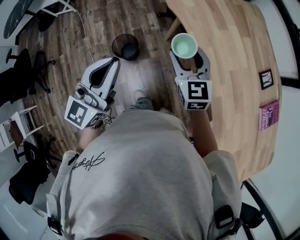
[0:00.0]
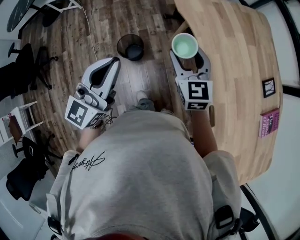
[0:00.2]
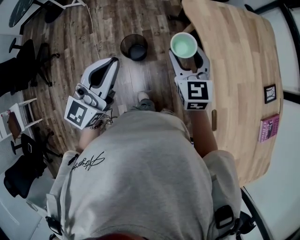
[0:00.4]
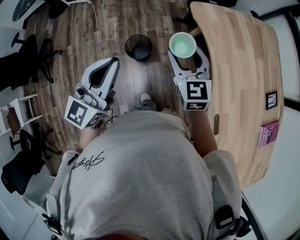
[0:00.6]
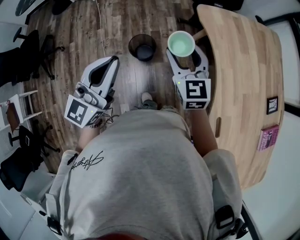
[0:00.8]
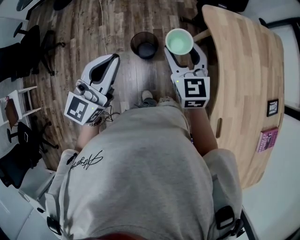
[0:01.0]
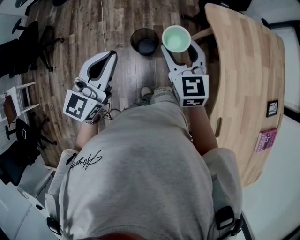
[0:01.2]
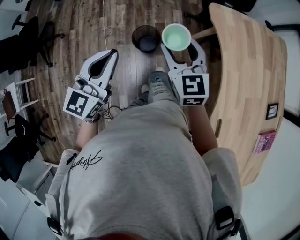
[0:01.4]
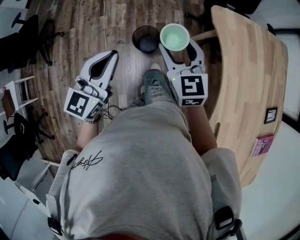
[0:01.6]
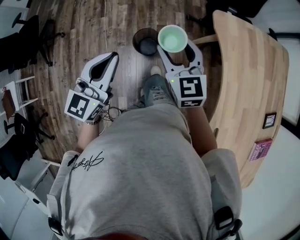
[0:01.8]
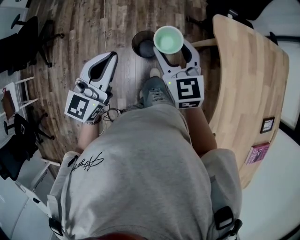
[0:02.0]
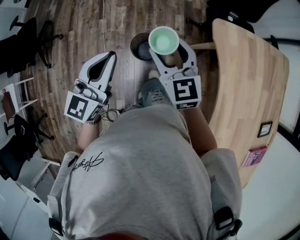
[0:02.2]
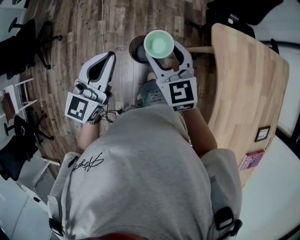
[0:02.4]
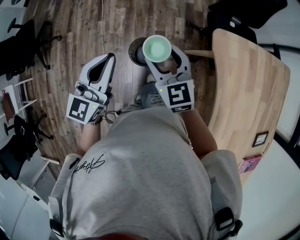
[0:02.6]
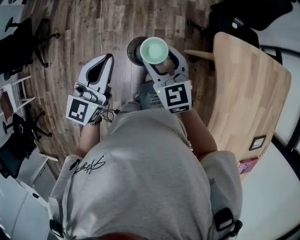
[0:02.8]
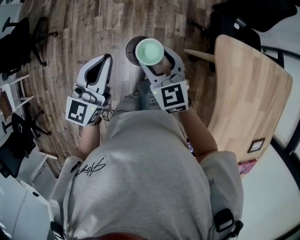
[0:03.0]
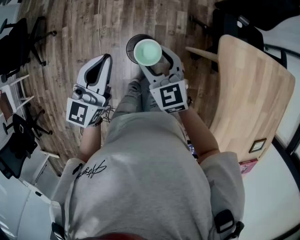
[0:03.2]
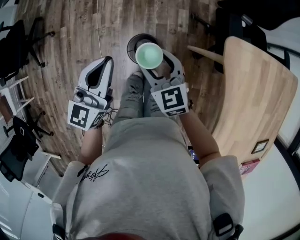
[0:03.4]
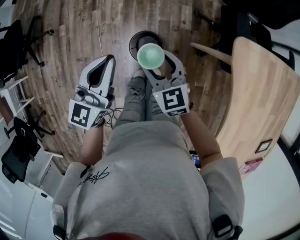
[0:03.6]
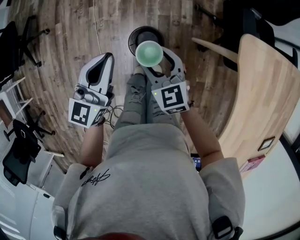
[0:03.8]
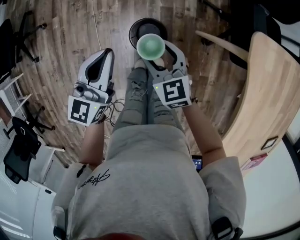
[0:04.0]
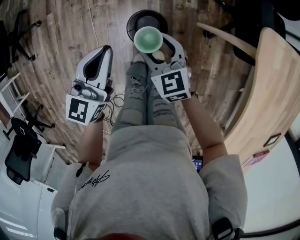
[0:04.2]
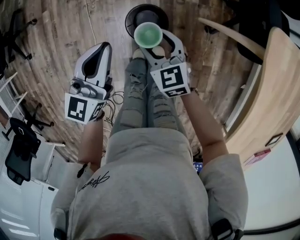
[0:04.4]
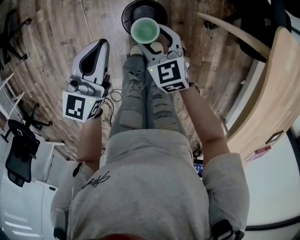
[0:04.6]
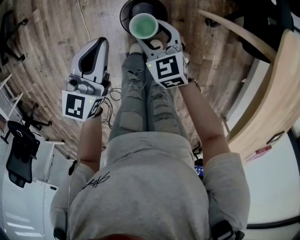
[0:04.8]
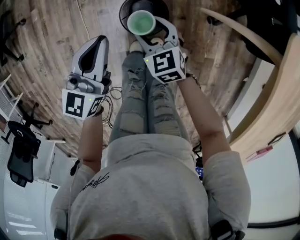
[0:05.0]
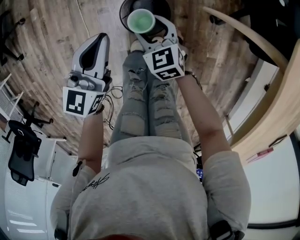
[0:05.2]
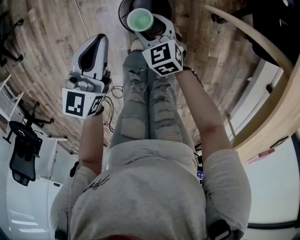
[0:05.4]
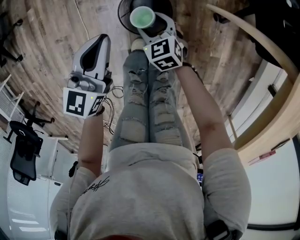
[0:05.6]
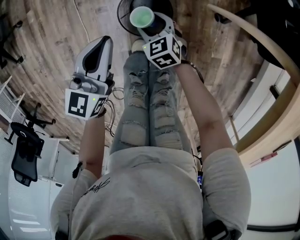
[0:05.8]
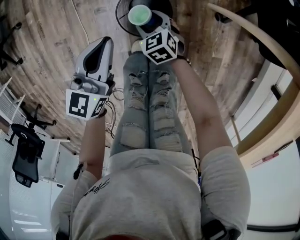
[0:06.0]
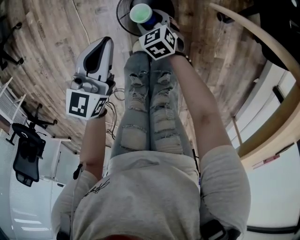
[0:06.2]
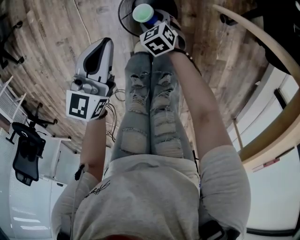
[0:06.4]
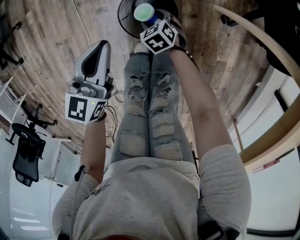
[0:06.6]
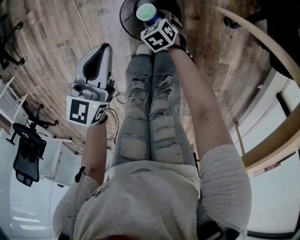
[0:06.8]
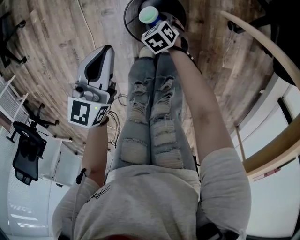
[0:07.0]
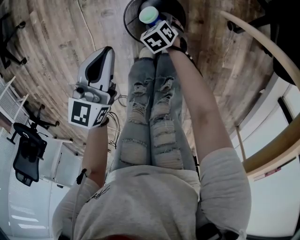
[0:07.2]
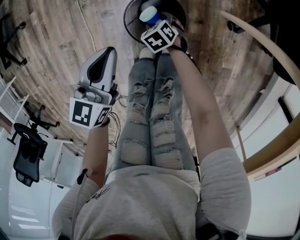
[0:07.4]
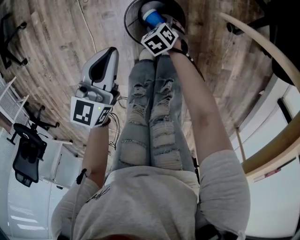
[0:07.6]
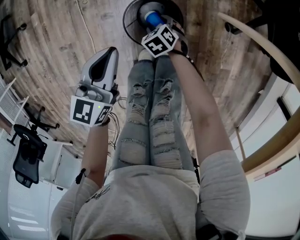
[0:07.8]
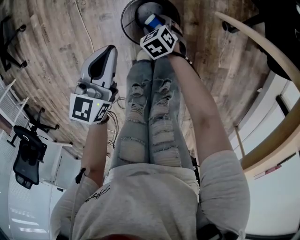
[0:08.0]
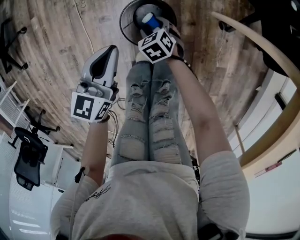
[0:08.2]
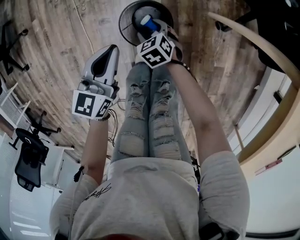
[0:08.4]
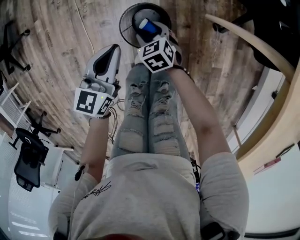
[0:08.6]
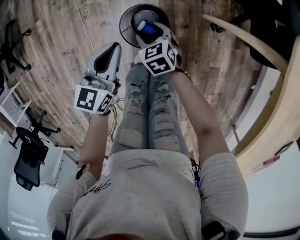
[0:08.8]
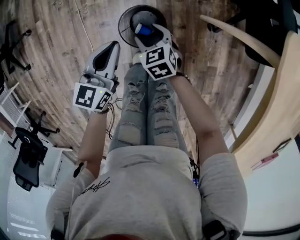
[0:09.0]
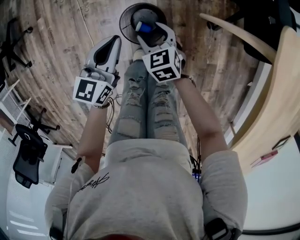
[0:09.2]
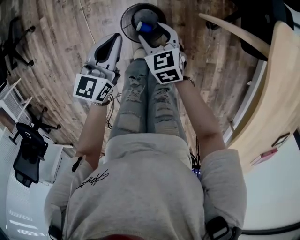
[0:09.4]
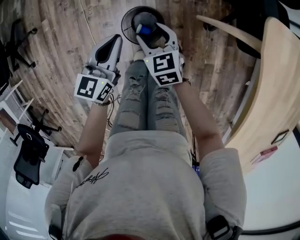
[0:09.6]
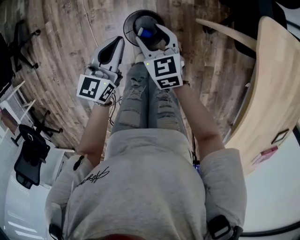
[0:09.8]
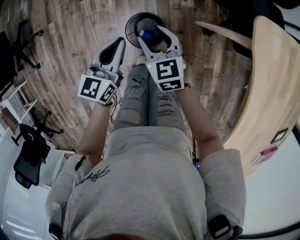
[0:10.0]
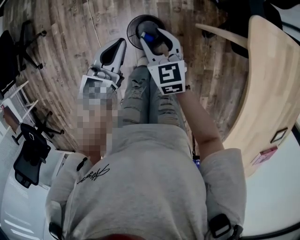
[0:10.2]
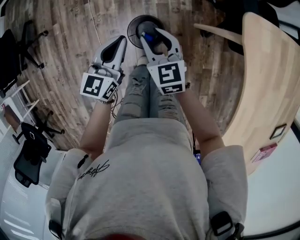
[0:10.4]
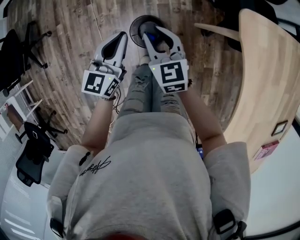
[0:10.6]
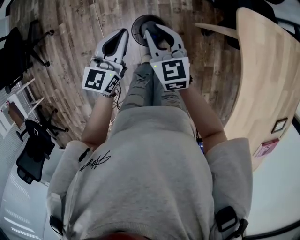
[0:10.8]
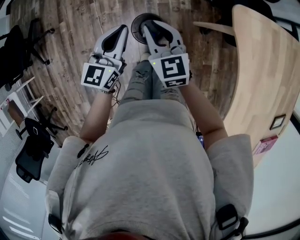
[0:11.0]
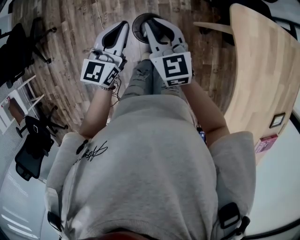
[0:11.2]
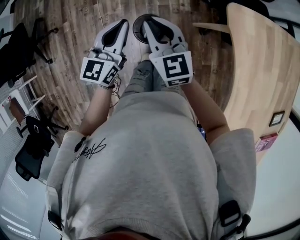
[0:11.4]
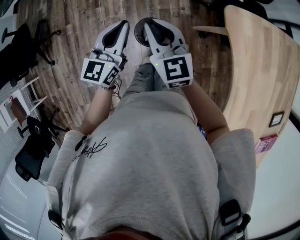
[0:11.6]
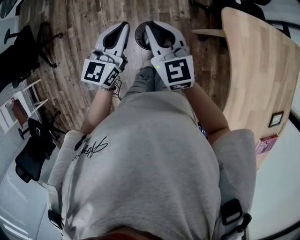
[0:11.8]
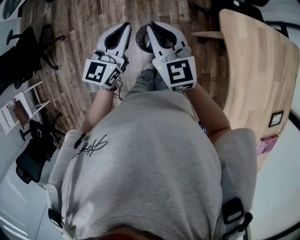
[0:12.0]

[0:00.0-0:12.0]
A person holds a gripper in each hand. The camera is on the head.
0:00.0 to 0:01.6: The left gripper goes some 15 cm to the left and downward, and changes its angle by roughly 20 degrees; the right gripper heads to the left, covering roughly 20 cm.
0:01.6 to 0:03.0: The left gripper moves forward, some 20 cm; the right gripper moves forward and downward, roughly 15 cm.
0:03.0 to 0:04.4: Both grippers move downward, some 20 cm.
0:04.4 to 0:06.0: The right gripper travels downward by about 25 cm; the left gripper moves downward, about 15 cm.
0:06.0 to 0:07.6: The right gripper is displaced downward by some 10 cm. The left gripper shifts by approximately 5 cm.
0:07.6 to 0:09.0: The left gripper moves upward, roughly 5 cm. The right gripper shifts about 20 cm upward, and changes its angle by about 20 degrees.
0:09.0 to 0:10.4: The right gripper travels upward by approximately 25 cm, rotates about 20 degrees, and closes up. The left gripper shifts approximately 15 cm upward.
0:10.4 to 0:12.0: Both grippers travel together upward, some 20 cm. The right gripper closes its fingers.

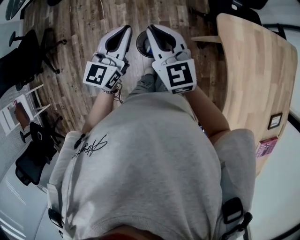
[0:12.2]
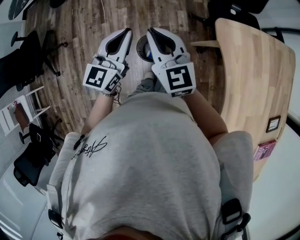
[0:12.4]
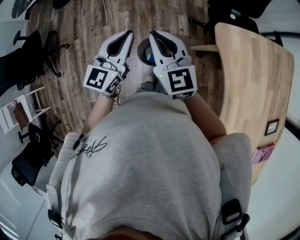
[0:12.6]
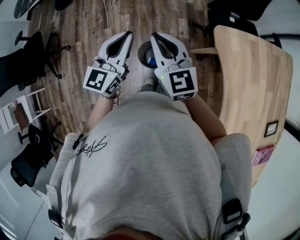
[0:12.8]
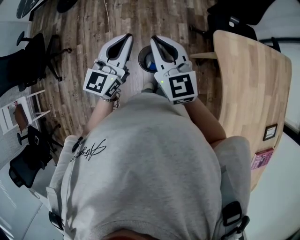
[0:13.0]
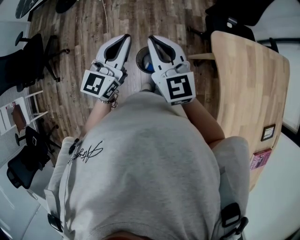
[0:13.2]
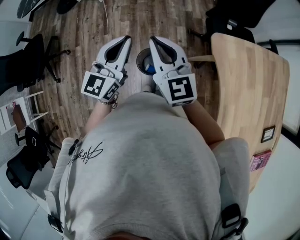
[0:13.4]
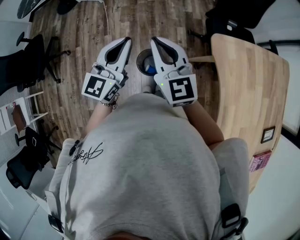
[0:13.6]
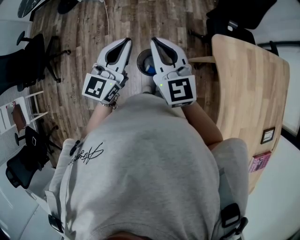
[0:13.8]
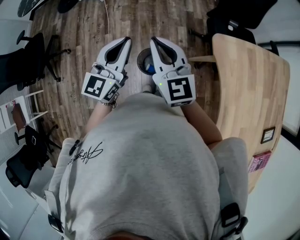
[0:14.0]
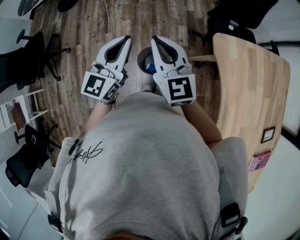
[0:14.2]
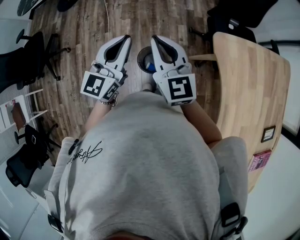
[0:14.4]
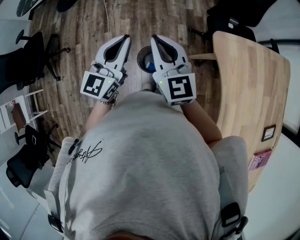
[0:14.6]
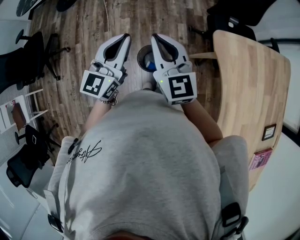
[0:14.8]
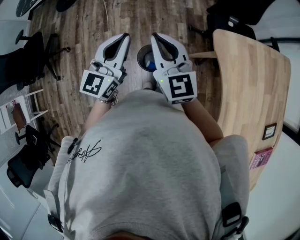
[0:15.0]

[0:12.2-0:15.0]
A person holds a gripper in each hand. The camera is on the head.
0:12.2 to 0:13.6: The two grippers go some 5 cm upward.
0:13.6 to 0:15.0: Both grippers stay put.

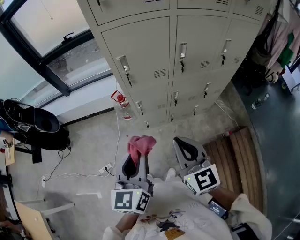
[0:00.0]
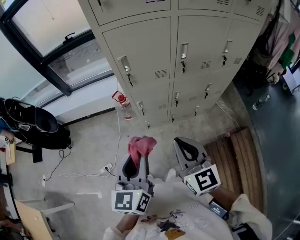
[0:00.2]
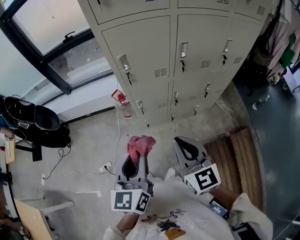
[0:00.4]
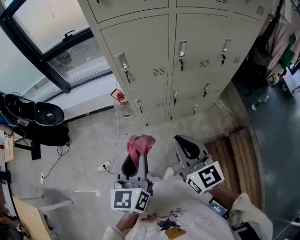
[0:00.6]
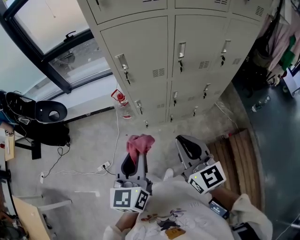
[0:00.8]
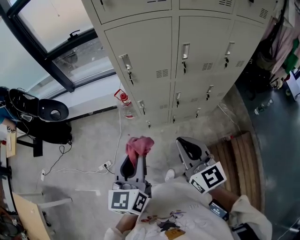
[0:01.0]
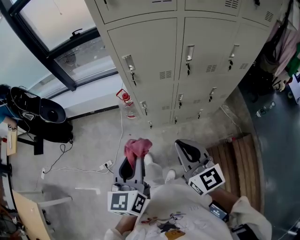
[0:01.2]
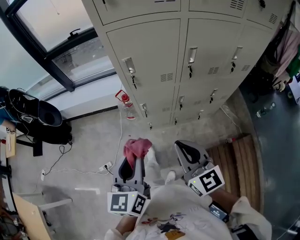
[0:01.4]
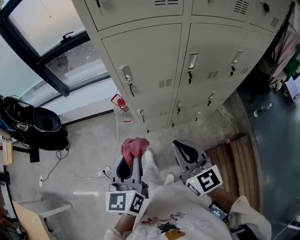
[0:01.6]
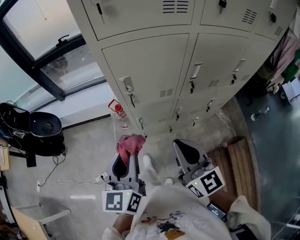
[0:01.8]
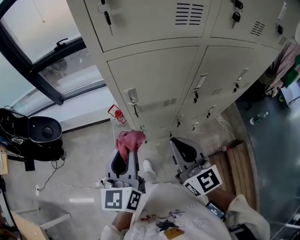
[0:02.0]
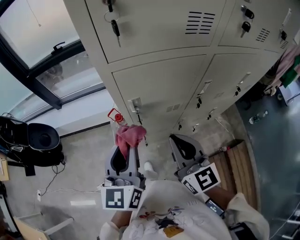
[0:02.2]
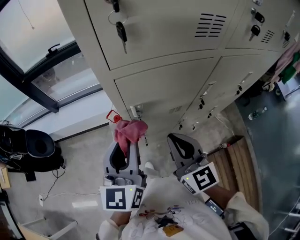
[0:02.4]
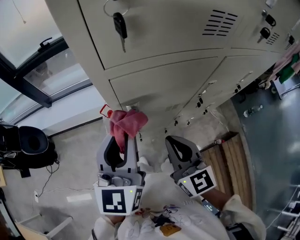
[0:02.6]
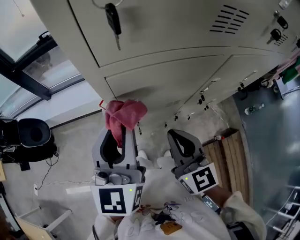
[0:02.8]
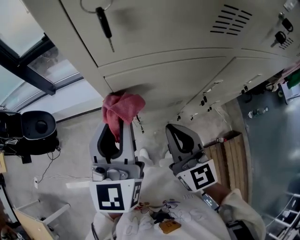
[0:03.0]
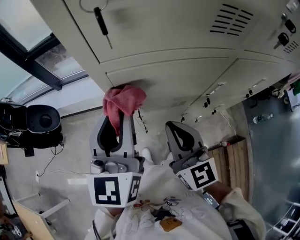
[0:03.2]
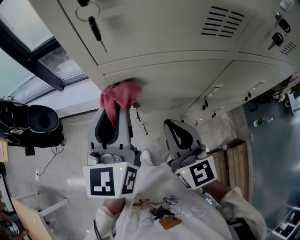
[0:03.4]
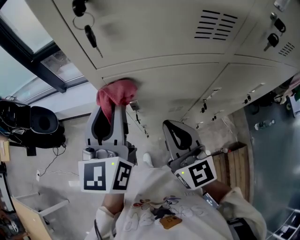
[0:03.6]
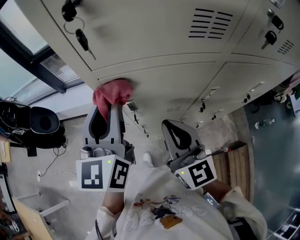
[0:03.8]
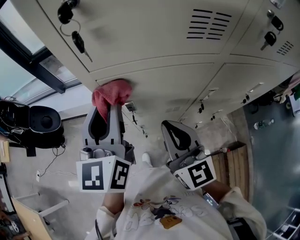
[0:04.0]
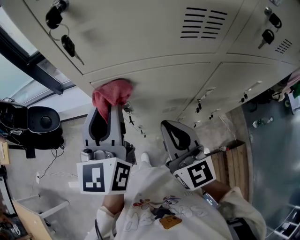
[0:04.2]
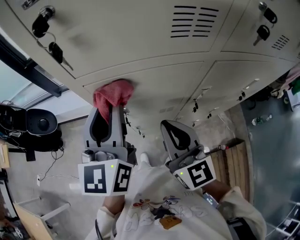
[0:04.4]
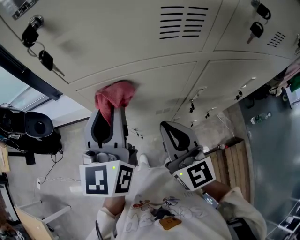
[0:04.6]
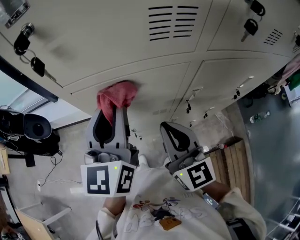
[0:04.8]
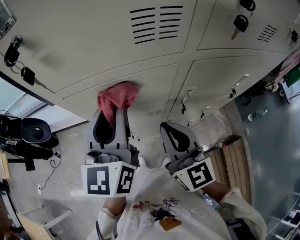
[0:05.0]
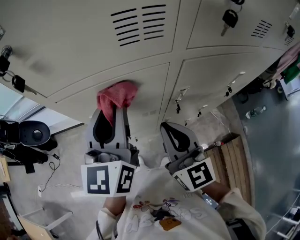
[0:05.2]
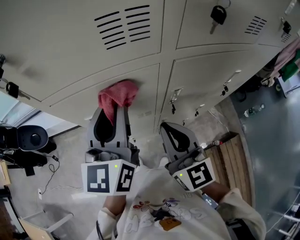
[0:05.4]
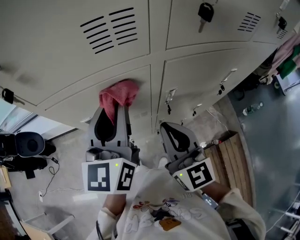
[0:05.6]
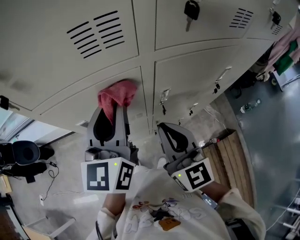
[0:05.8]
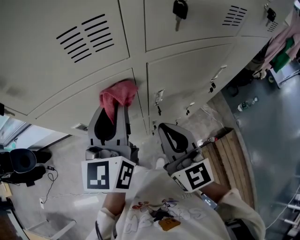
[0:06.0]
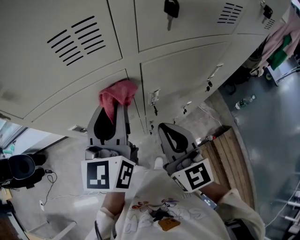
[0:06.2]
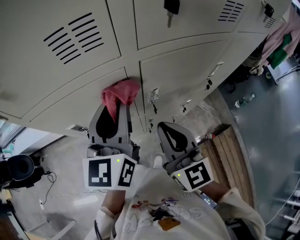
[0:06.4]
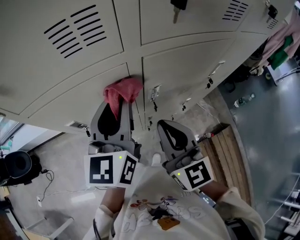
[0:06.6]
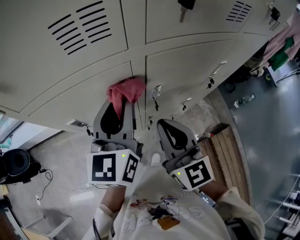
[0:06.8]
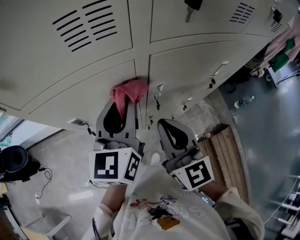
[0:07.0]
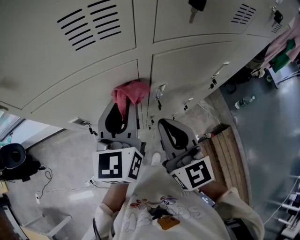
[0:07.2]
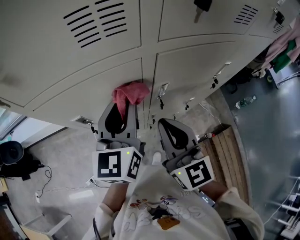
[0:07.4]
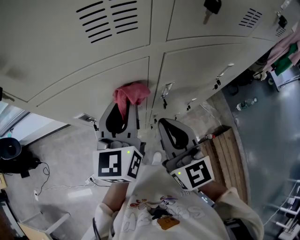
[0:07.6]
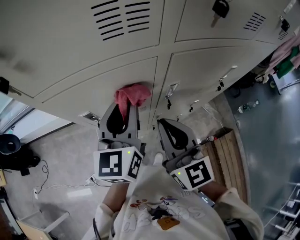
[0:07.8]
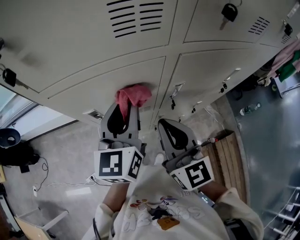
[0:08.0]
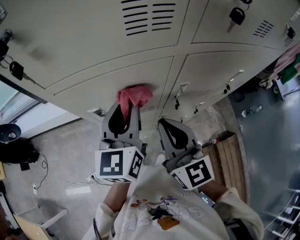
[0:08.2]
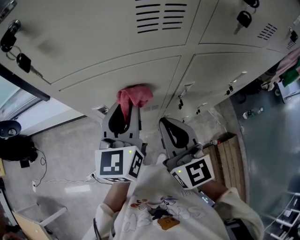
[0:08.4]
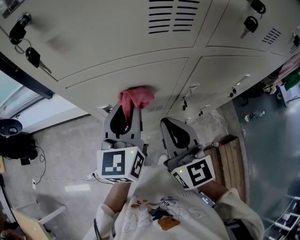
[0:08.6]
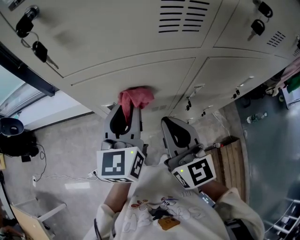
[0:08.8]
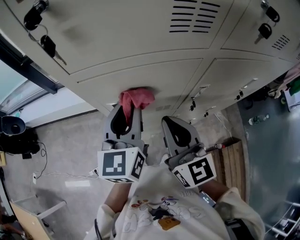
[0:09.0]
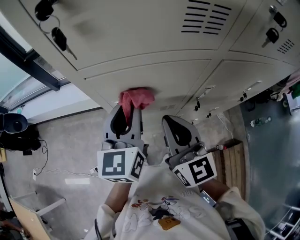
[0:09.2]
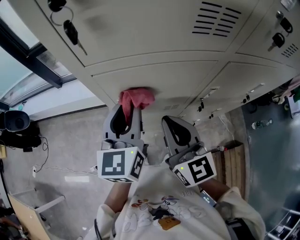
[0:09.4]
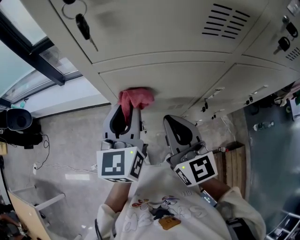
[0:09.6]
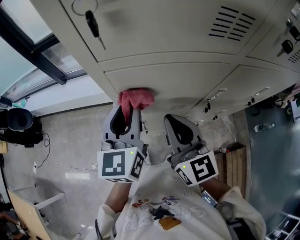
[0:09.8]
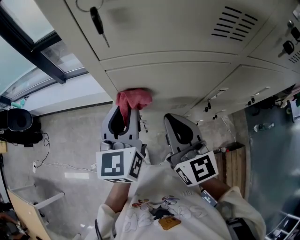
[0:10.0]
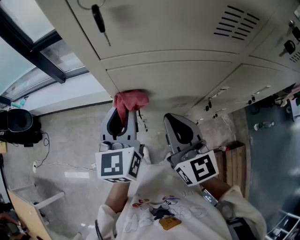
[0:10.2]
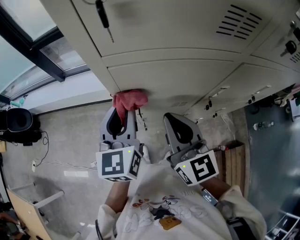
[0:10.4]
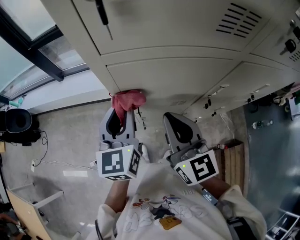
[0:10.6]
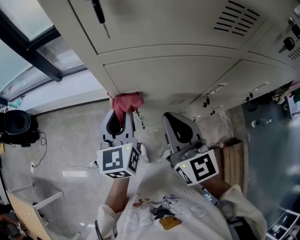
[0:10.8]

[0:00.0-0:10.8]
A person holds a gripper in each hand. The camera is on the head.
0:00.0 to 0:01.6: The two grippers go some 10 cm forward.
0:01.6 to 0:03.0: The left gripper travels forward and upward by some 30 cm, while the right gripper goes some 20 cm forward.
0:03.0 to 0:04.6: Both grippers move to the right, about 5 cm.
0:04.6 to 0:06.2: The grippers both shift to the right by some 15 cm.
0:06.2 to 0:07.8: The right gripper goes some 5 cm to the left. Meanwhile the left gripper shifts approximately 5 cm downward.
0:07.8 to 0:09.2: The two grippers go about 10 cm to the left.
0:09.2 to 0:10.8: The left gripper goes some 10 cm to the left and downward.
